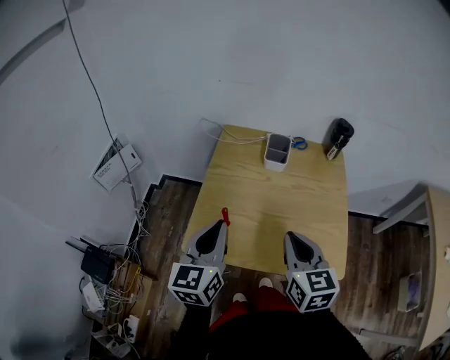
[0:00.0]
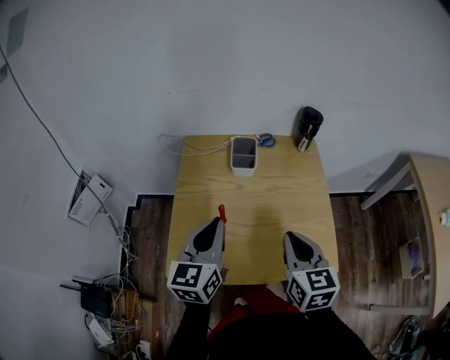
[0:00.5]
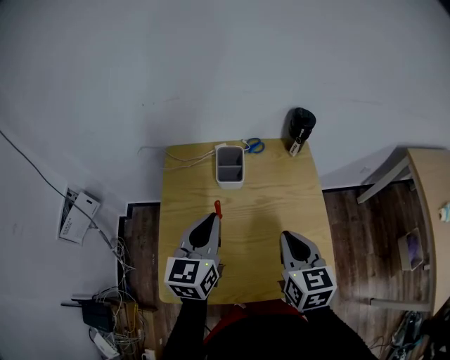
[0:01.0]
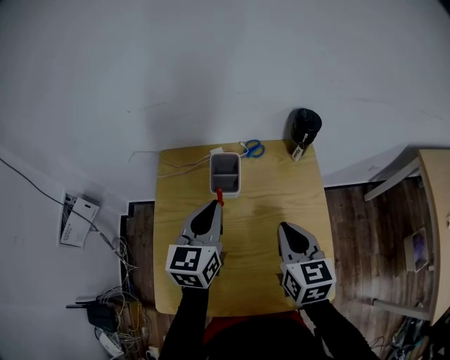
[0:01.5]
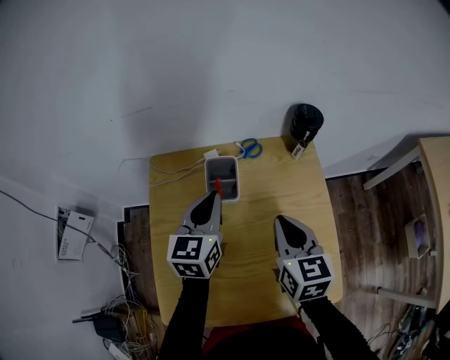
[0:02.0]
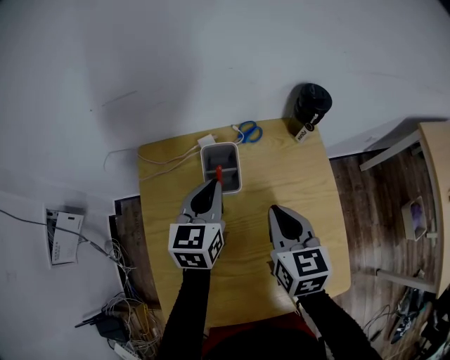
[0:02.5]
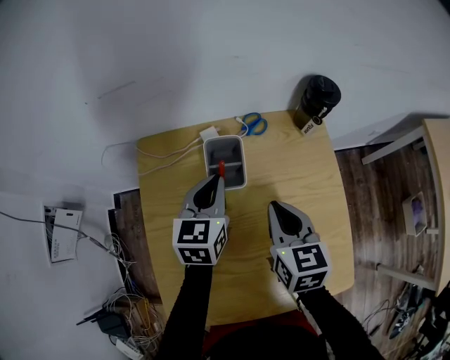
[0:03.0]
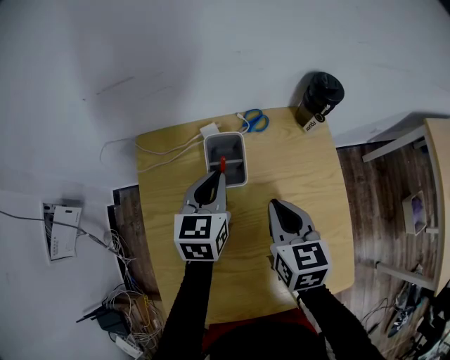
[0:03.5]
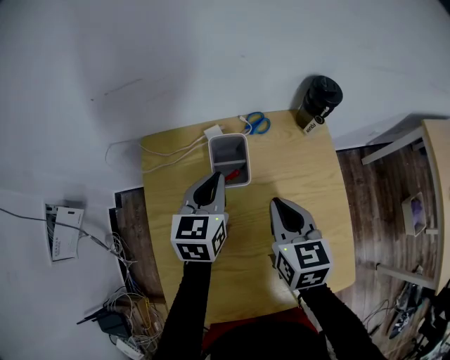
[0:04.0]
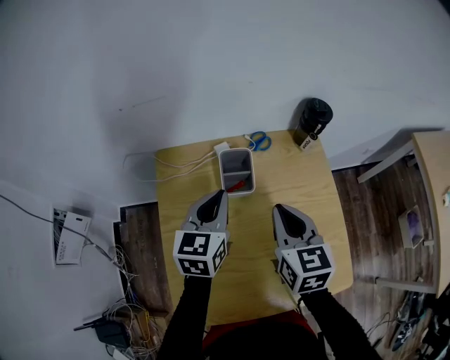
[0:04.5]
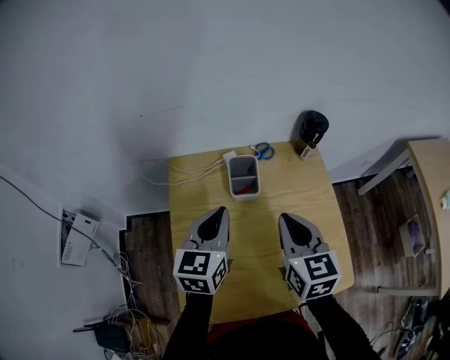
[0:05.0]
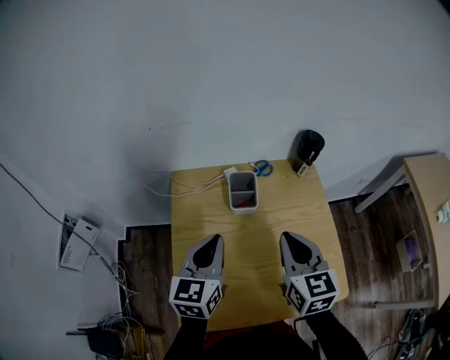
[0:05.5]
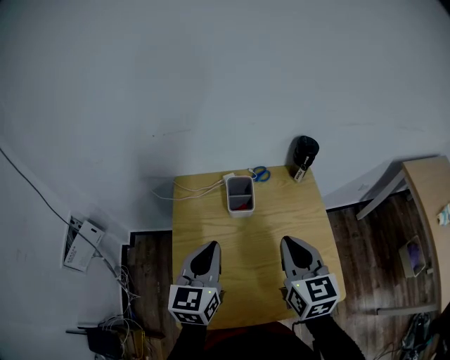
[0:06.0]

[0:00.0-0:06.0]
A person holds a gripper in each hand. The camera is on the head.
0:00.0 to 0:02.0: The two grippers go roughly 25 cm forward. The left gripper changes its angle by approximately 20 degrees.
0:02.0 to 0:04.0: The left gripper heads downward, covering approximately 5 cm. The right gripper changes place by some 5 cm.
0:04.0 to 0:06.0: The left gripper is displaced backward and upward by roughly 20 cm; the right gripper moves upward and backward, approximately 15 cm.

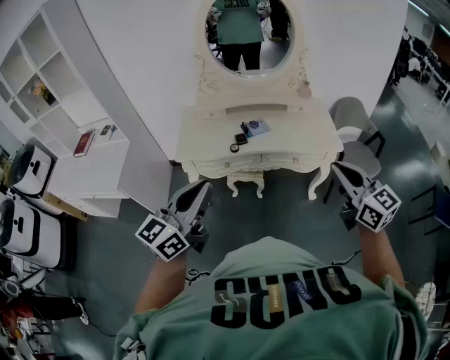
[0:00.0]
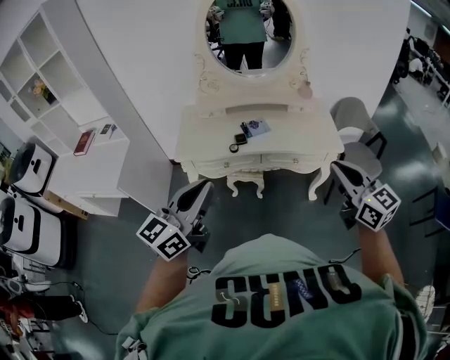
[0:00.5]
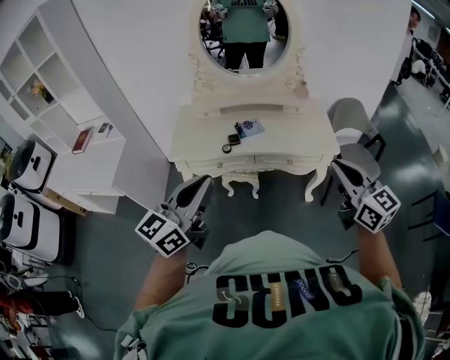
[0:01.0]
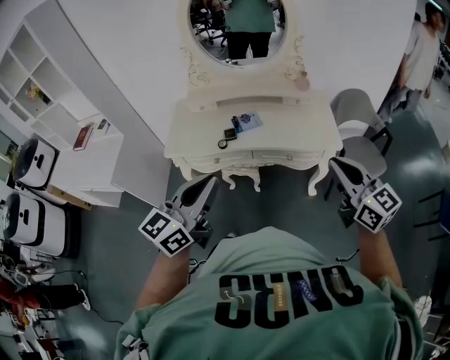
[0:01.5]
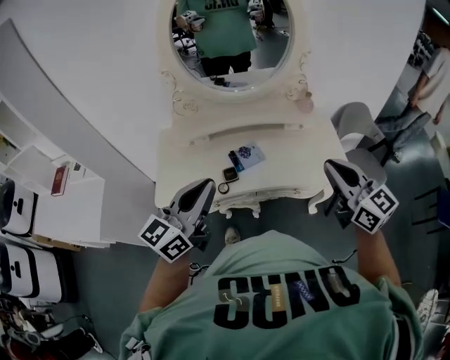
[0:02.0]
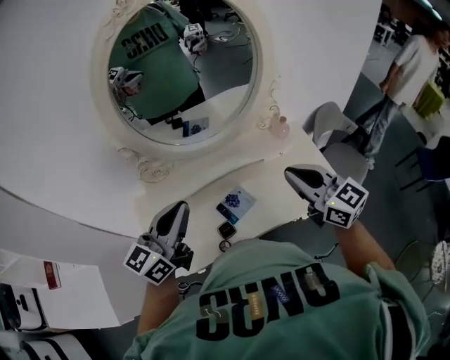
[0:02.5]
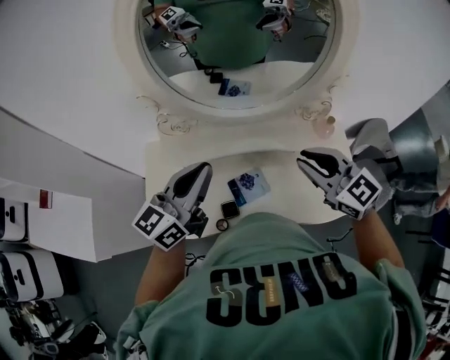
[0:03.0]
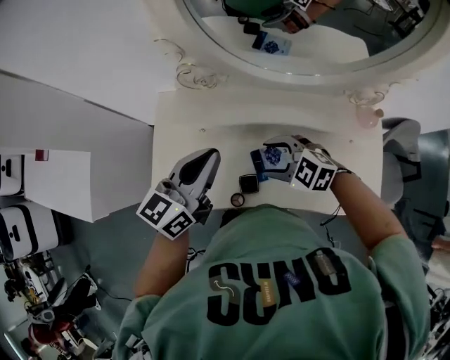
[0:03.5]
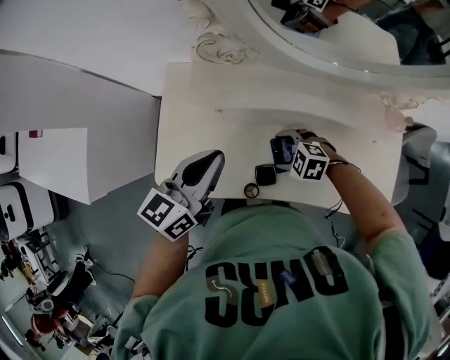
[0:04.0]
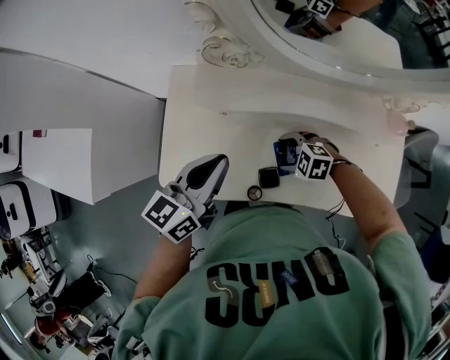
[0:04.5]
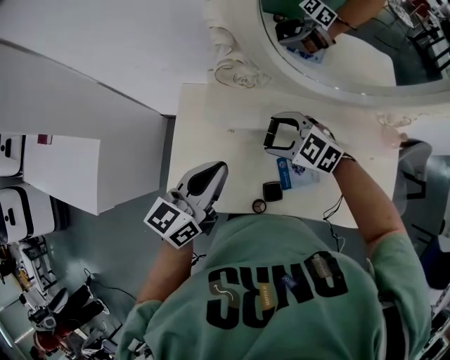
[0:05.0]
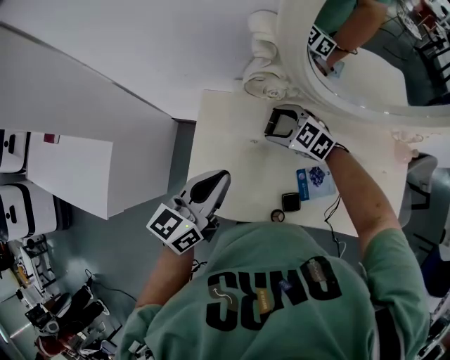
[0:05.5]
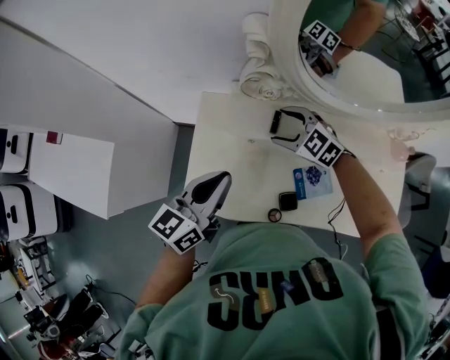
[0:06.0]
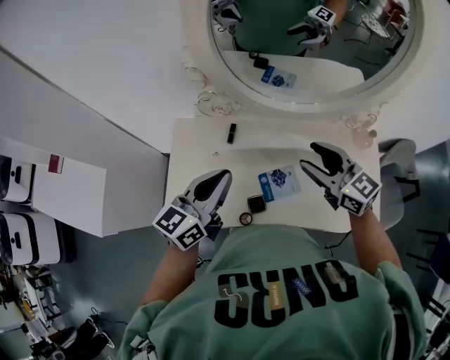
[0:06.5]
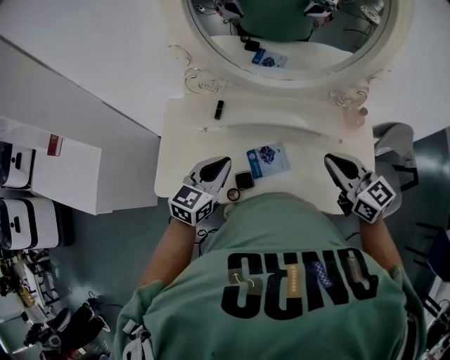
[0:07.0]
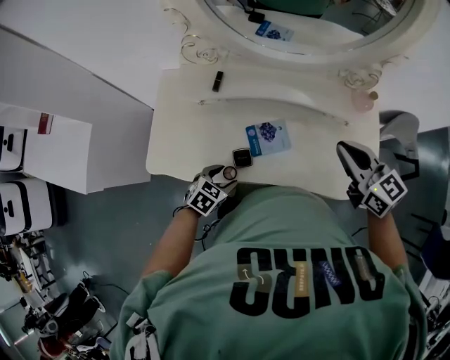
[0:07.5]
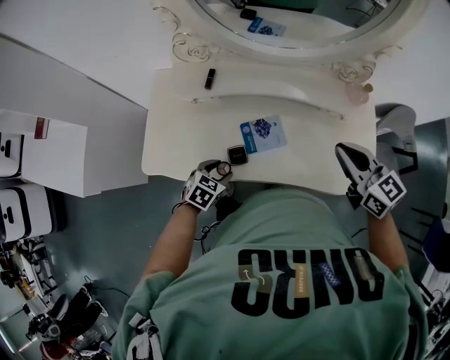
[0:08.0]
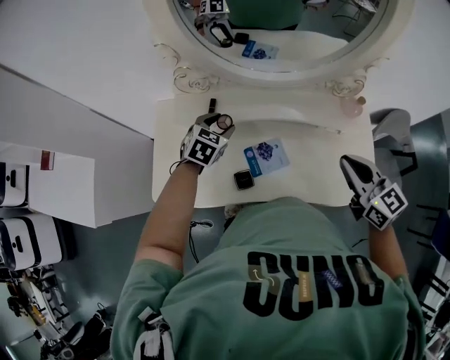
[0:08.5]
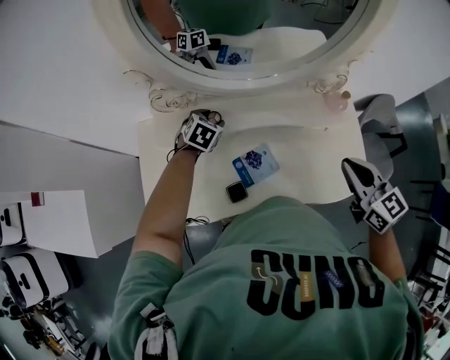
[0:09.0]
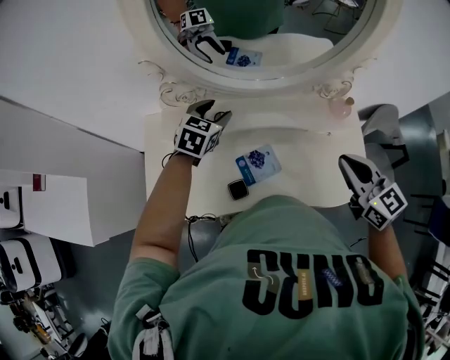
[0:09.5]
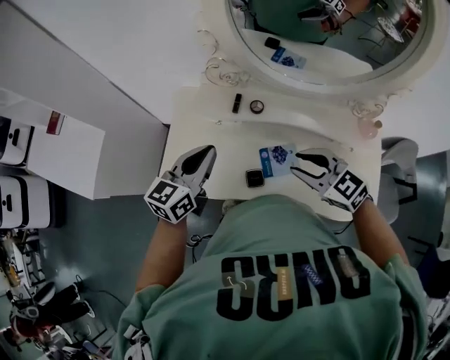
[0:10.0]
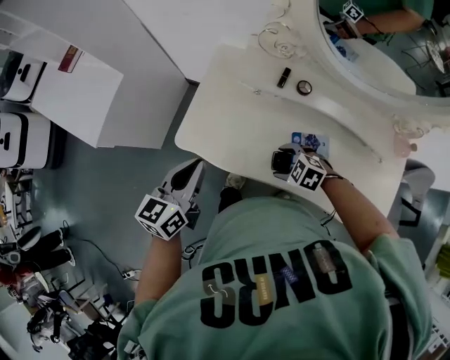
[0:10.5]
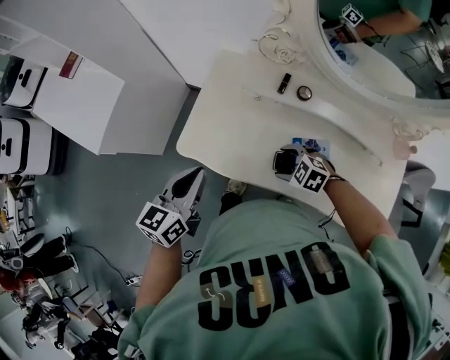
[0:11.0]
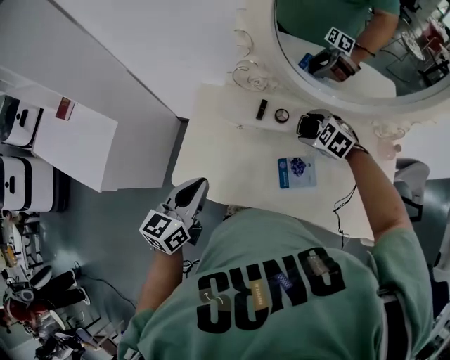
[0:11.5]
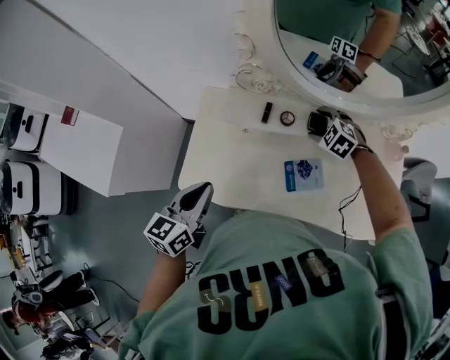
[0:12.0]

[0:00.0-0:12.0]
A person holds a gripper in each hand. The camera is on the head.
0:00.0 to 0:02.0: Both grippers move forward, roughly 25 cm.
0:02.0 to 0:04.0: The right gripper is displaced downward by approximately 40 cm, angles its fingers downward, by roughly 60 degrees, and opens. The left gripper shifts by roughly 35 cm, and turns by roughly 30 degrees.
0:04.0 to 0:06.0: The right gripper moves roughly 25 cm, and rotates some 30 degrees; the left gripper moves about 10 cm.
0:06.0 to 0:08.0: The left gripper goes approximately 35 cm downward, to the right and backward, angles its fingers downward, by approximately 40 degrees, and opens, while the right gripper shifts approximately 40 cm to the right and backward, rotates roughly 50 degrees, and closes.
0:08.0 to 0:10.0: The right gripper travels upward and back again, approximately 5 cm each way, rotates some 40 degrees, and opens up, while the left gripper swings up and down, some 25 cm each way, with 2 reversals, tips its fingers upward by some 40 degrees, and closes its fingers.
0:10.0 to 0:12.0: The right gripper changes place by some 25 cm, swivels approximately 30 degrees, and opens.

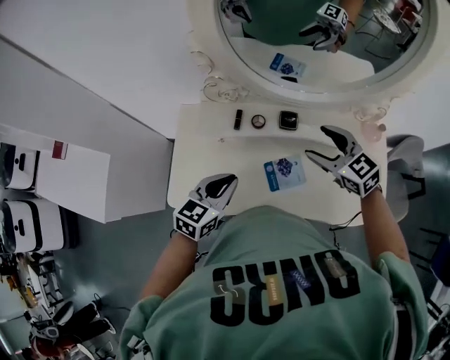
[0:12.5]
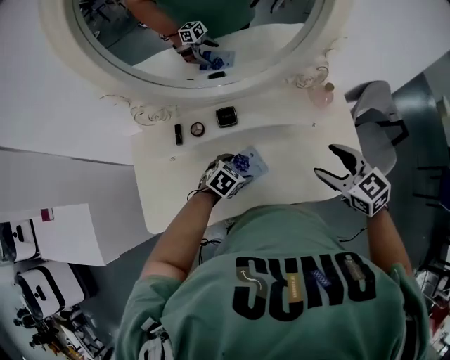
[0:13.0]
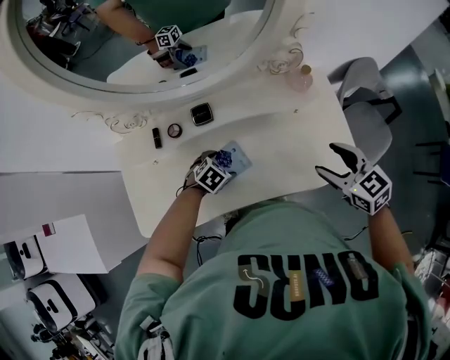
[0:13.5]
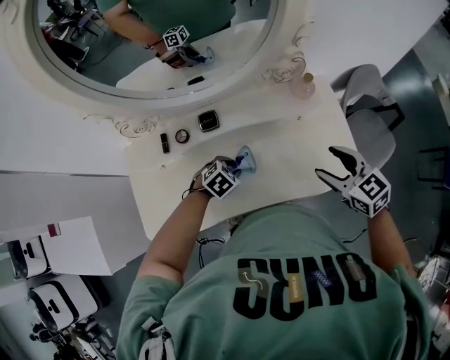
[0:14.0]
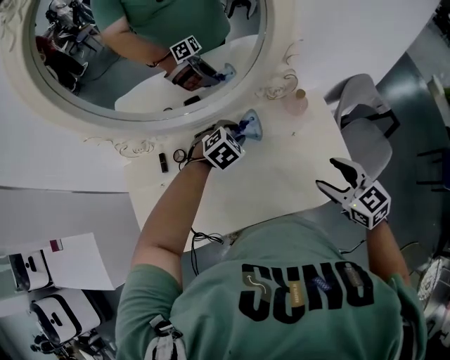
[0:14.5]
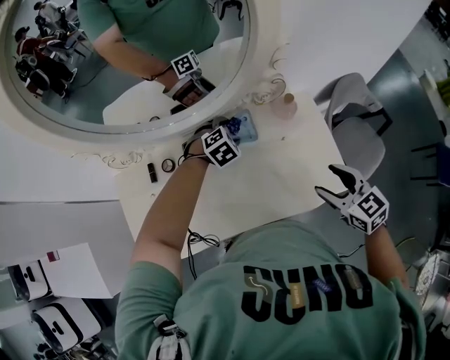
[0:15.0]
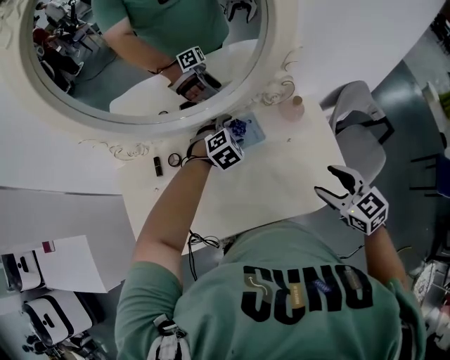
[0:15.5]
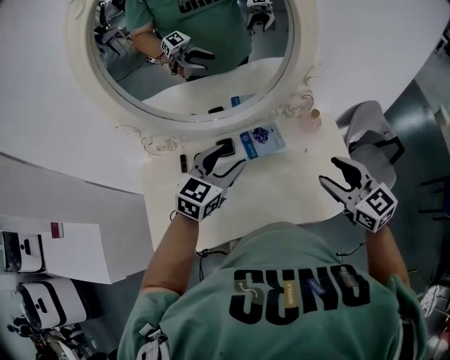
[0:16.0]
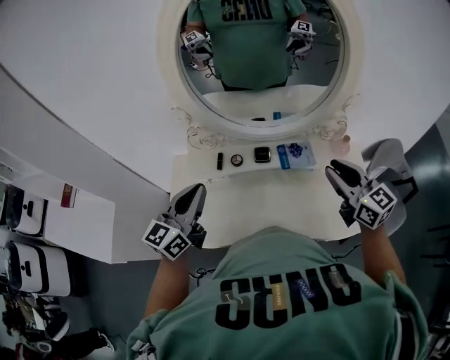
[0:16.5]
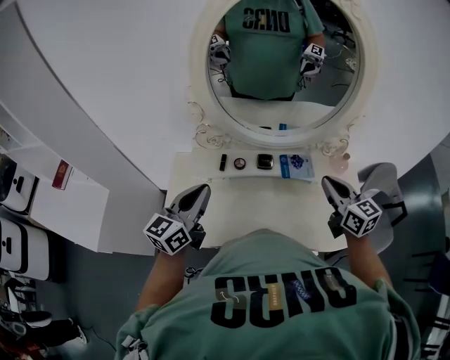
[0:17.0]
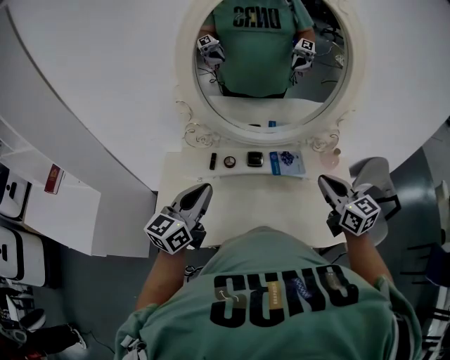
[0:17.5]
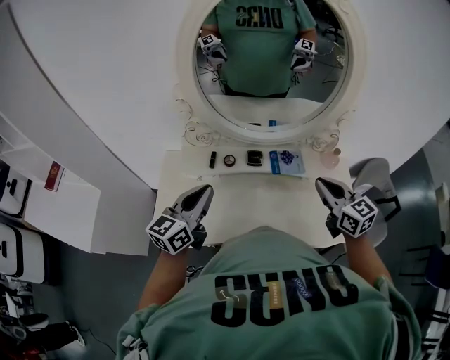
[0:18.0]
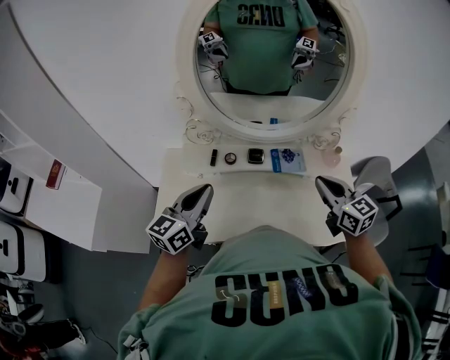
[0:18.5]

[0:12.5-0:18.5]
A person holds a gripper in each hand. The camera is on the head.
0:12.5 to 0:14.5: The left gripper reaches roughly 25 cm downward, then returns, rotates around the line of its fingers by some 50 degrees, clockwise from behind, and opens, then closes again, while the right gripper changes place by roughly 30 cm, and changes its angle by some 30 degrees.
0:14.5 to 0:16.5: The left gripper shifts some 40 cm to the left, upward and backward, tilts its fingers roughly 60 degrees upward, and opens and closes again, while the right gripper heads upward and to the left, covering about 20 cm, turns by about 20 degrees, and closes.
0:16.5 to 0:18.5: The grippers stay close to where they were, moving slightly.

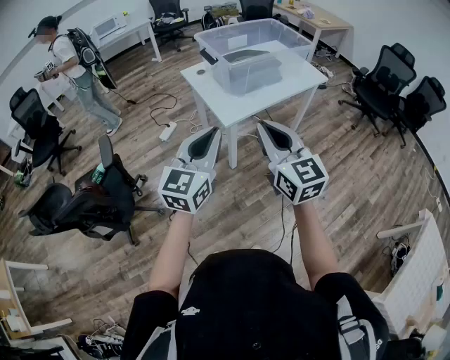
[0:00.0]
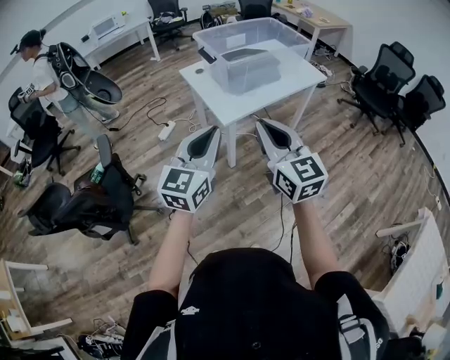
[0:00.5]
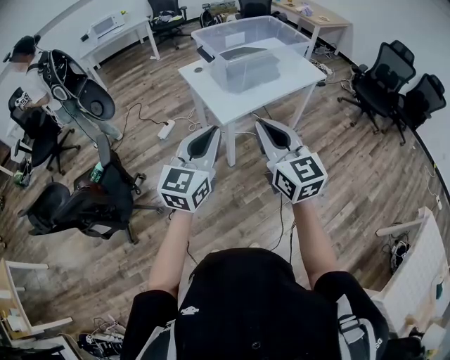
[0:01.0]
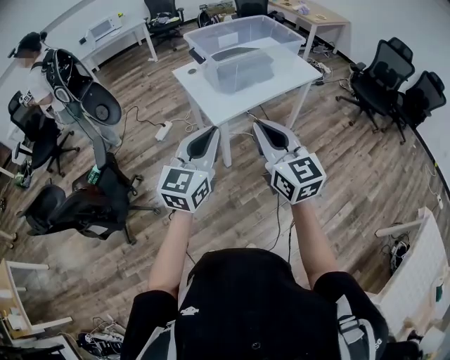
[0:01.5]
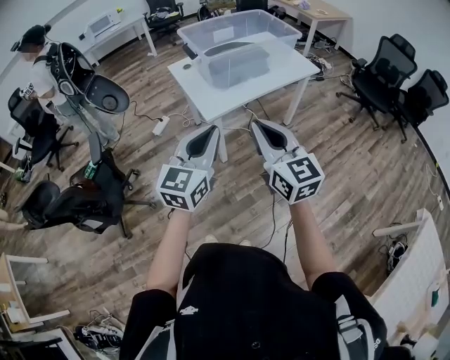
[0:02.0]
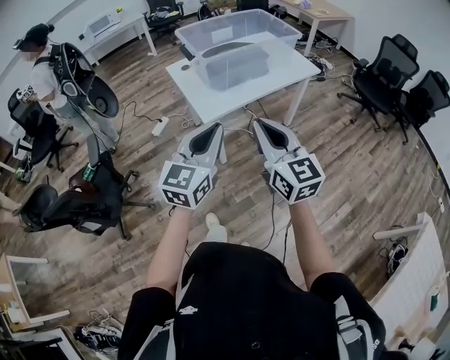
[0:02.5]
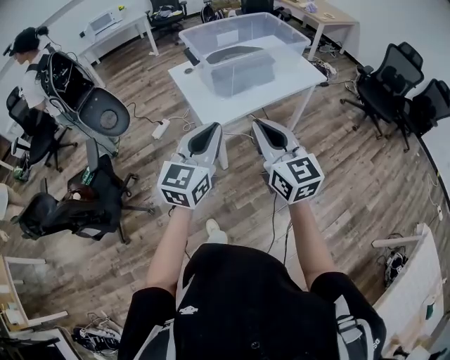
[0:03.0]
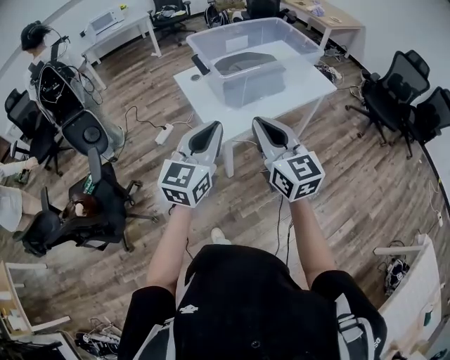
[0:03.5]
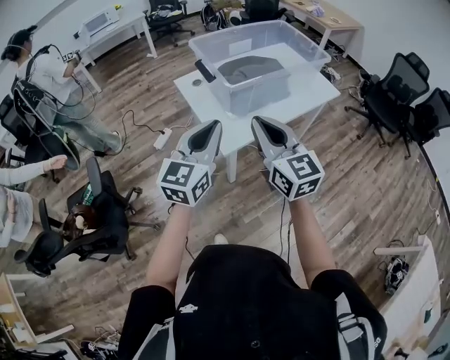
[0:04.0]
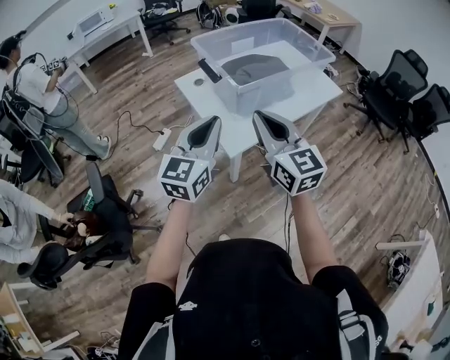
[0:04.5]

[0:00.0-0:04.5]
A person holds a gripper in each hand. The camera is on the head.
0:00.0 to 0:02.0: The two grippers go some 10 cm to the right.
0:02.0 to 0:04.5: Both grippers travel together forward and to the left, about 30 cm.
